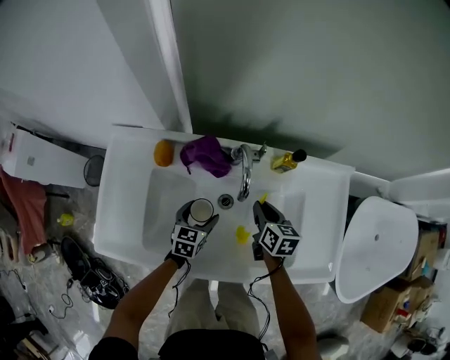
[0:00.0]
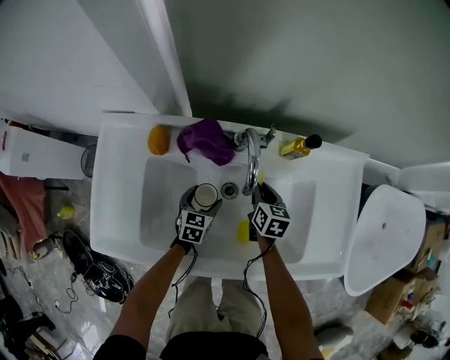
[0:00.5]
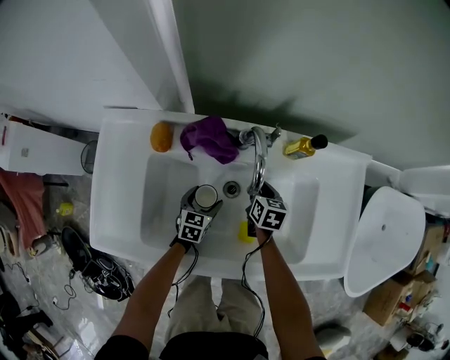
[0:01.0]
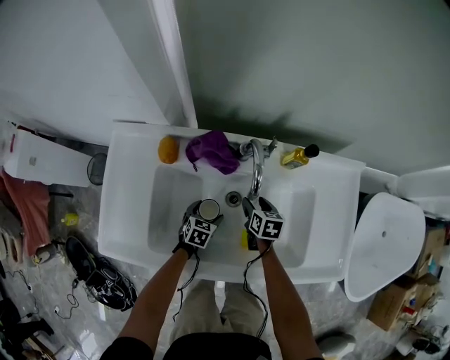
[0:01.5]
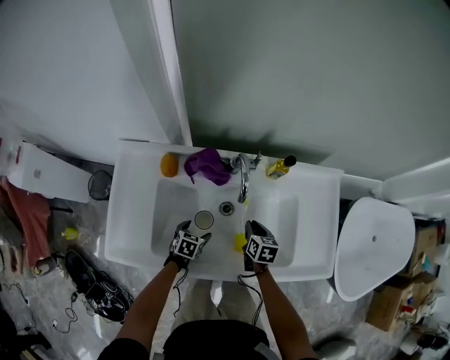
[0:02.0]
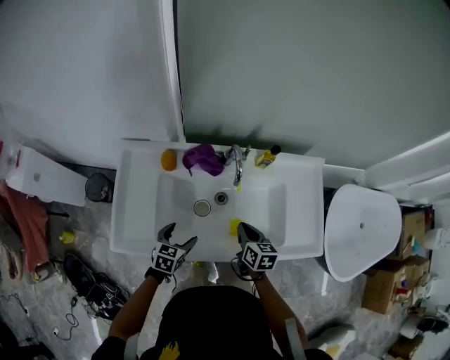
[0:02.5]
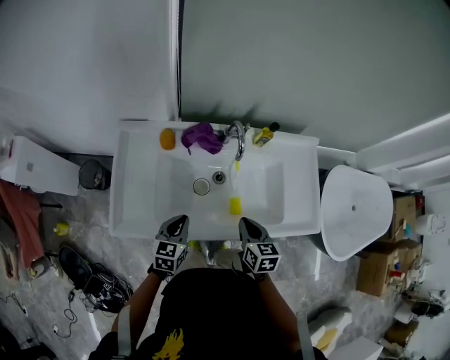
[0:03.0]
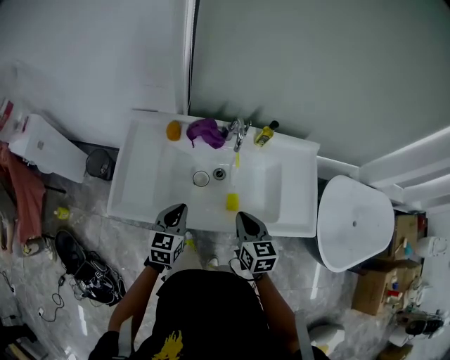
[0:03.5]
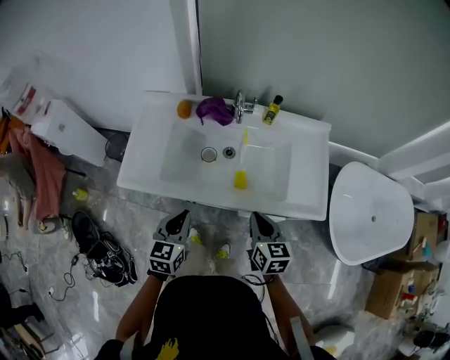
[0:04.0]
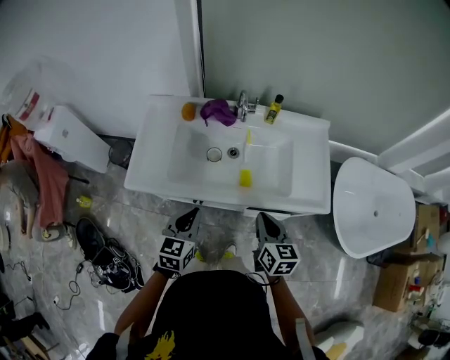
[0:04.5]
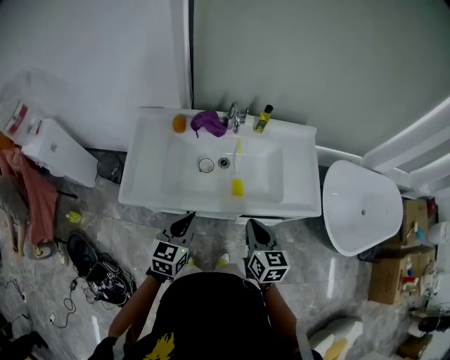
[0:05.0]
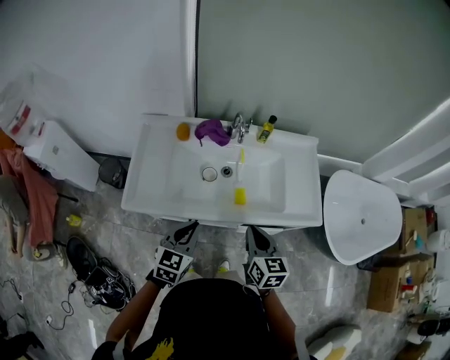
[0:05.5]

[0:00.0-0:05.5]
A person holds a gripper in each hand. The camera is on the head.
0:00.0 to 0:02.0: The right gripper shifts some 5 cm backward, and opens, then closes again; the left gripper shifts some 10 cm downward and backward, and turns by roughly 20 degrees.
0:02.0 to 0:03.5: Both grippers move upward and backward, about 30 cm. The left gripper points its fingers about 30 degrees further upward, and closes up. Meanwhile the right gripper rotates approximately 20 degrees.
0:03.5 to 0:05.5: The right gripper goes some 10 cm backward. The left gripper heads backward and upward, covering roughly 15 cm.

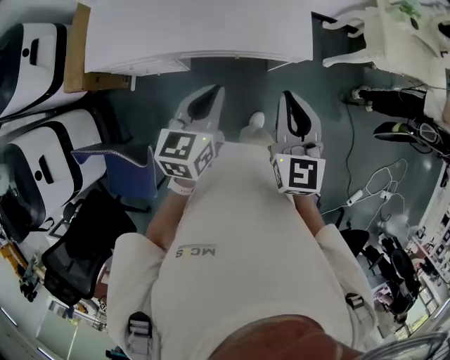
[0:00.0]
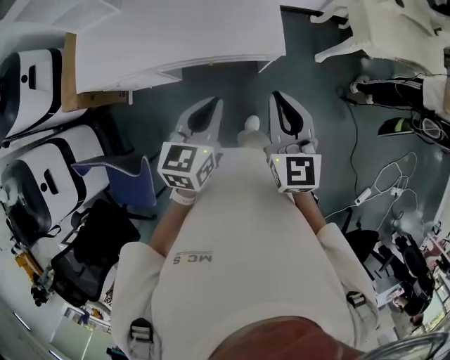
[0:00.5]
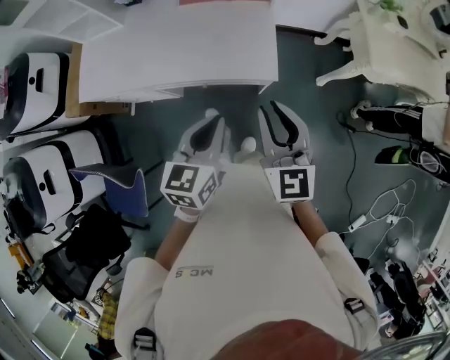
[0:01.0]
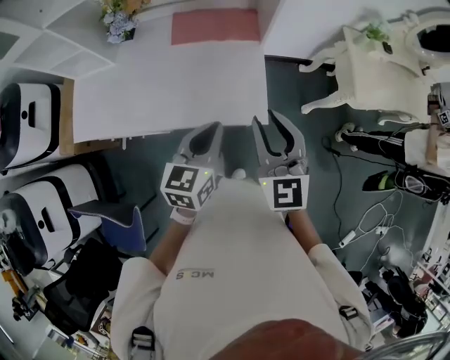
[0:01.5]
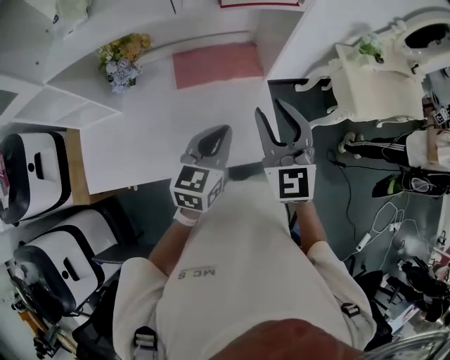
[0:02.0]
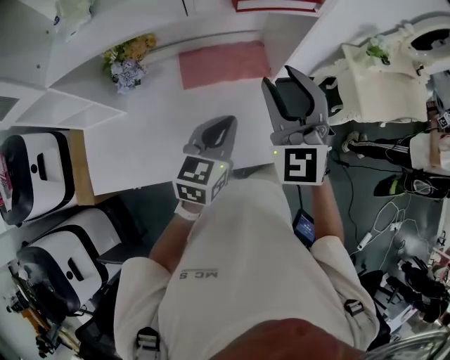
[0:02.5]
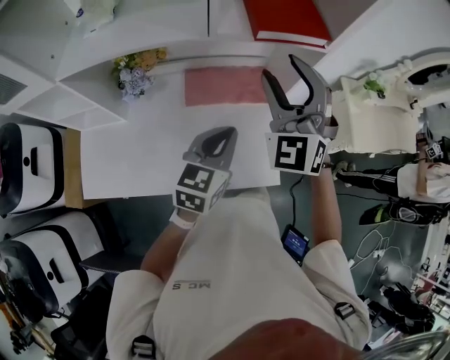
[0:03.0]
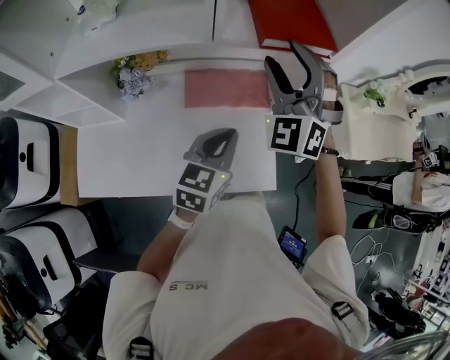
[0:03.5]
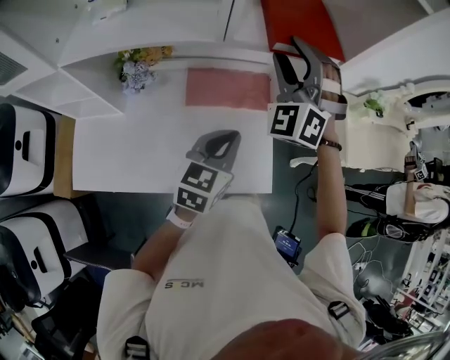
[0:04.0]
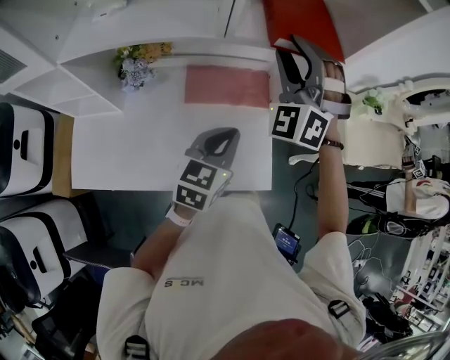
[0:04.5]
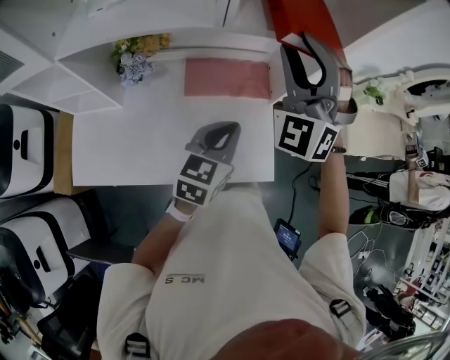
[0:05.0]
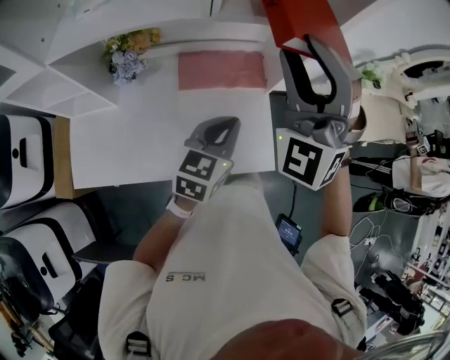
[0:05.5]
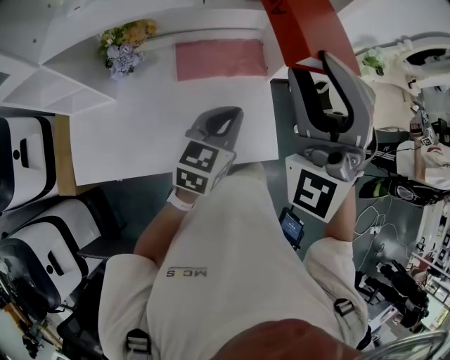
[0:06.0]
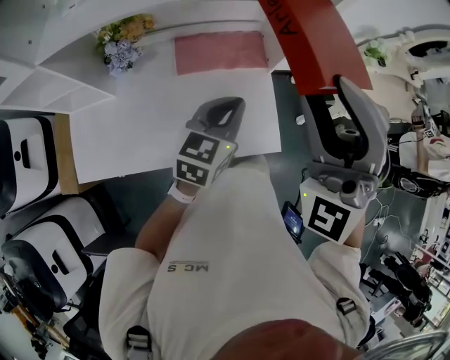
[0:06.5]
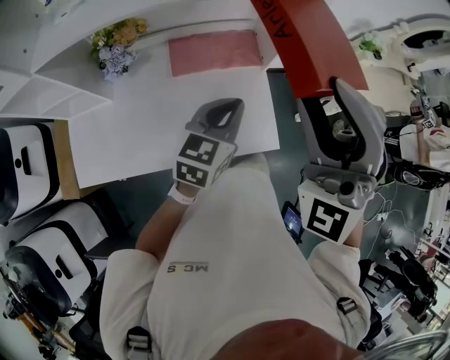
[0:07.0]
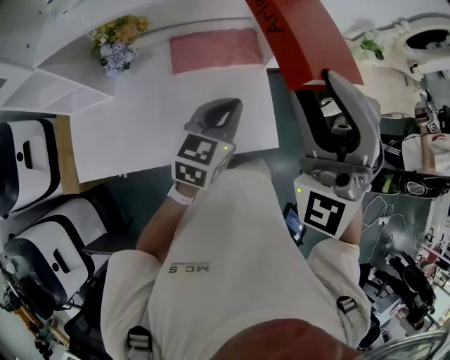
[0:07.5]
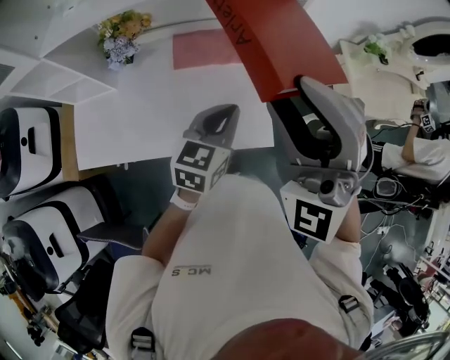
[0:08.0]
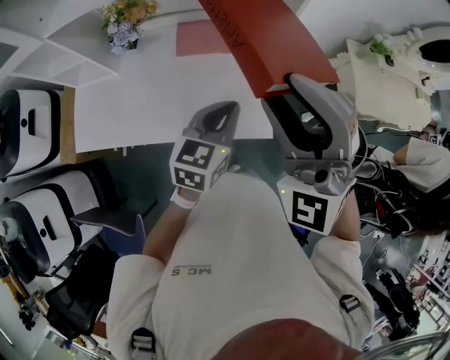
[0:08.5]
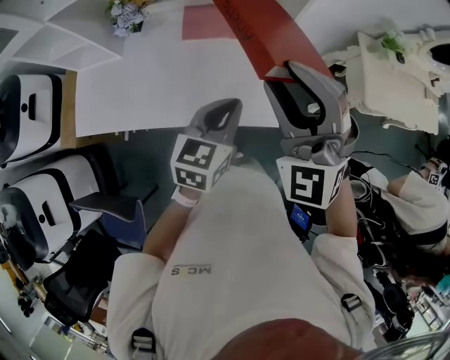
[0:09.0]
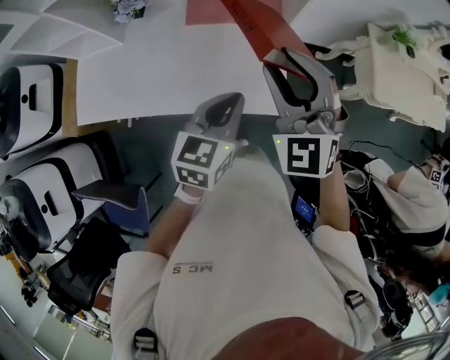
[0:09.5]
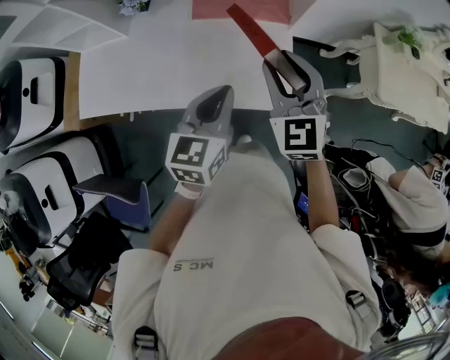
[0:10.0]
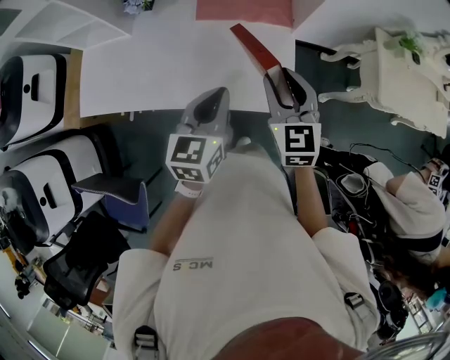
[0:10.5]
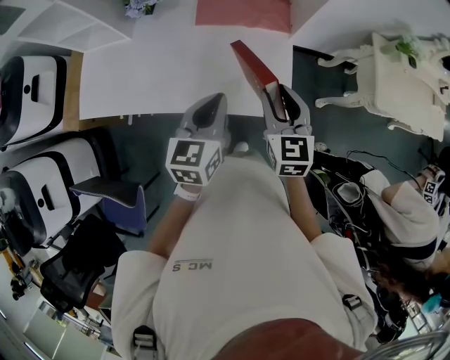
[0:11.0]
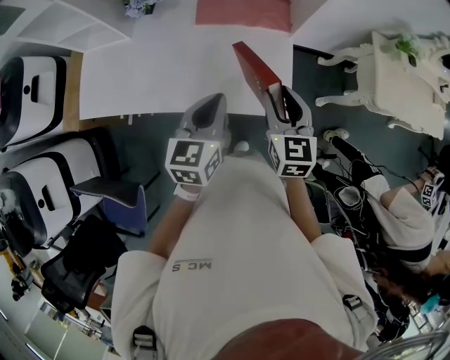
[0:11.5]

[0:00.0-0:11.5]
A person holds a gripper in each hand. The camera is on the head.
0:00.0 to 0:02.0: The grippers both shift forward by some 35 cm. The right gripper opens.
0:02.0 to 0:04.0: The left gripper heads forward, covering roughly 10 cm. The right gripper heads forward, to the left and upward, covering some 25 cm, and twists approximately 50 degrees counterclockwise, seen from behind.
0:04.0 to 0:06.0: The right gripper heads backward and upward, covering about 20 cm.
0:06.0 to 0:07.5: The right gripper moves backward, roughly 5 cm.
0:07.5 to 0:09.5: The right gripper shifts roughly 15 cm downward, and rotates about 30 degrees. The left gripper goes approximately 10 cm backward.
0:09.5 to 0:11.5: The right gripper is displaced downward by approximately 15 cm, and rolls clockwise, seen from behind, by about 40 degrees; the left gripper is displaced to the left by approximately 5 cm.

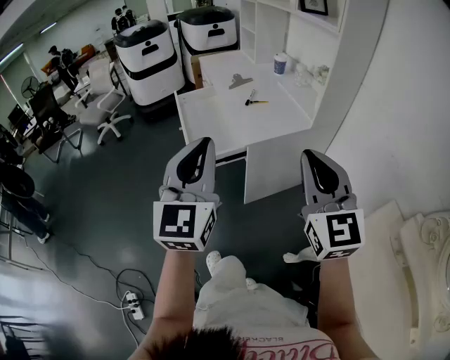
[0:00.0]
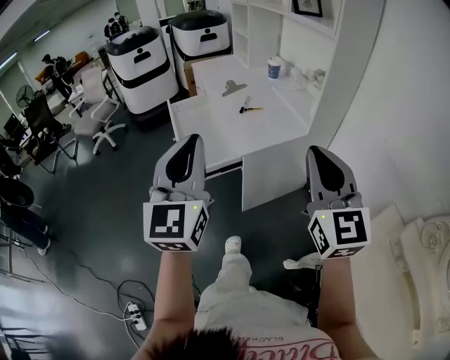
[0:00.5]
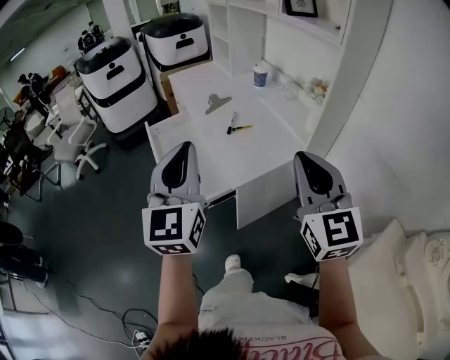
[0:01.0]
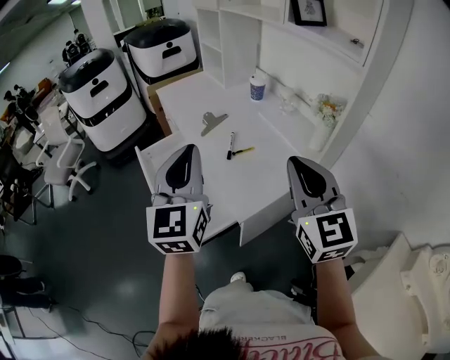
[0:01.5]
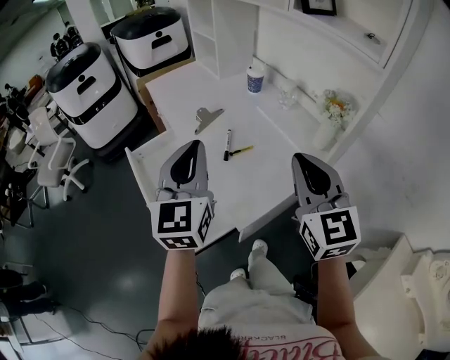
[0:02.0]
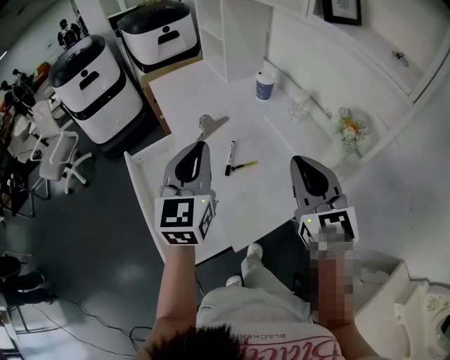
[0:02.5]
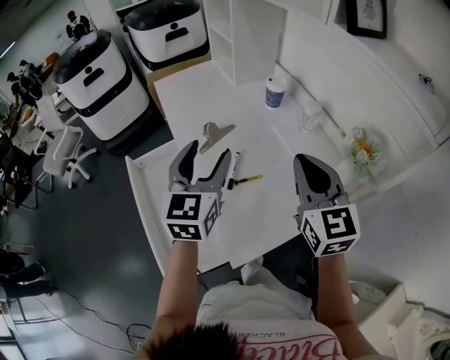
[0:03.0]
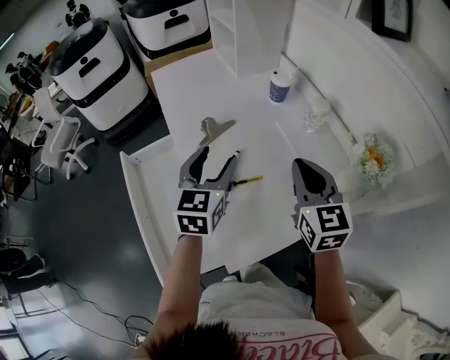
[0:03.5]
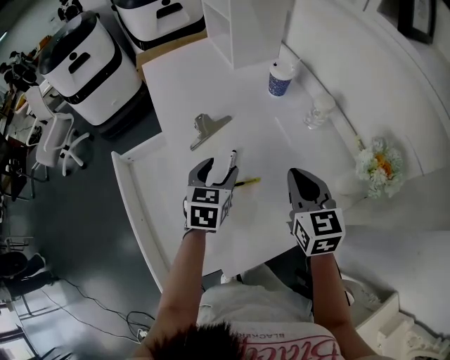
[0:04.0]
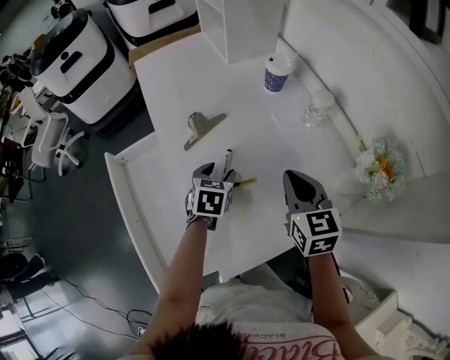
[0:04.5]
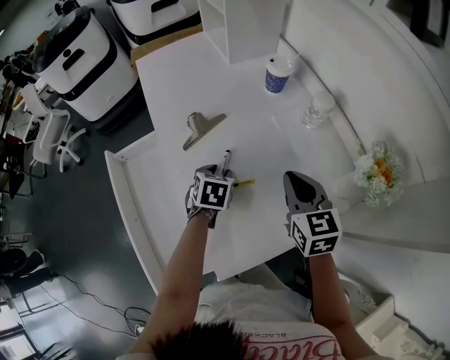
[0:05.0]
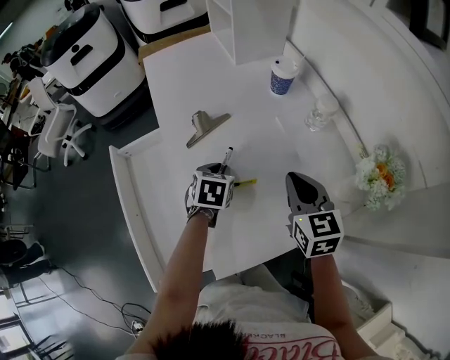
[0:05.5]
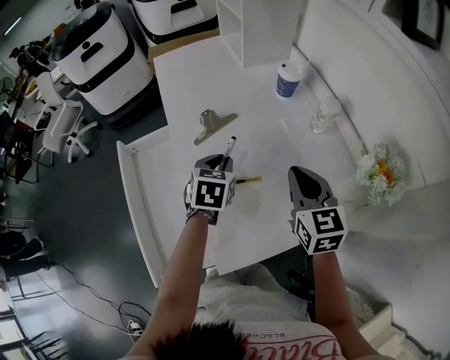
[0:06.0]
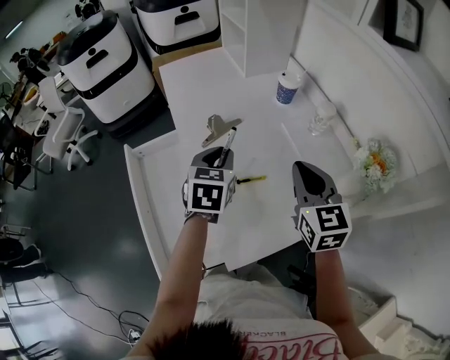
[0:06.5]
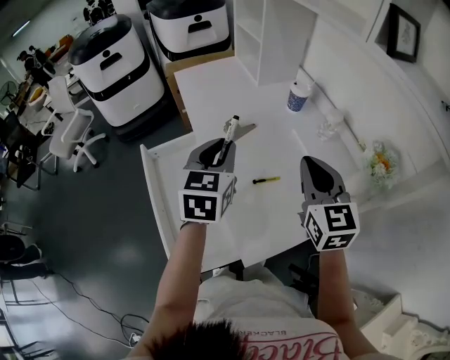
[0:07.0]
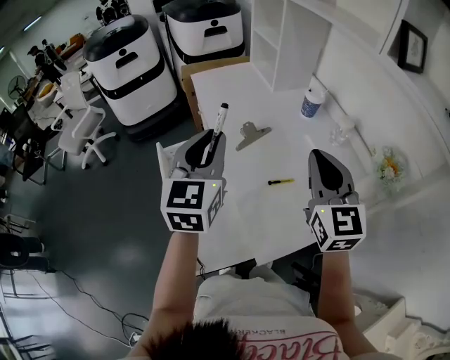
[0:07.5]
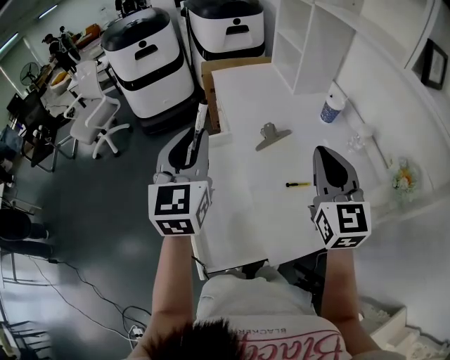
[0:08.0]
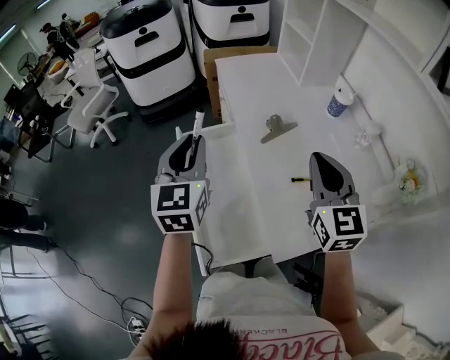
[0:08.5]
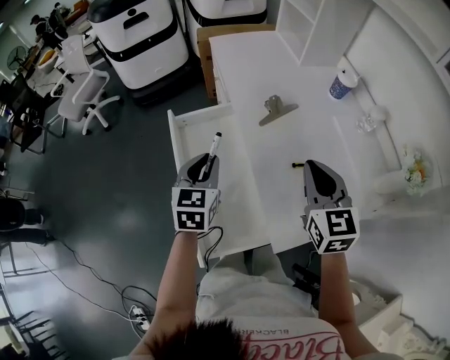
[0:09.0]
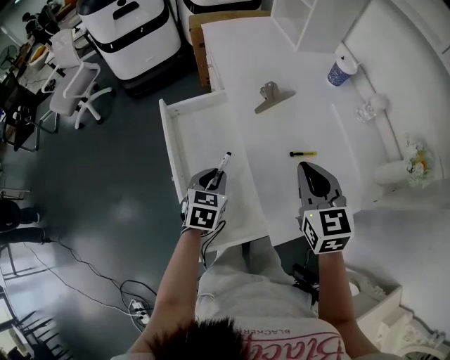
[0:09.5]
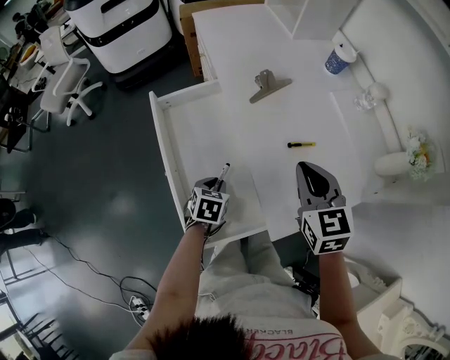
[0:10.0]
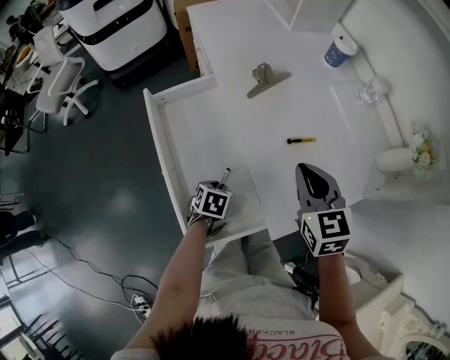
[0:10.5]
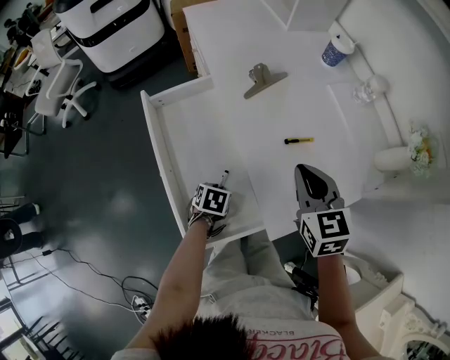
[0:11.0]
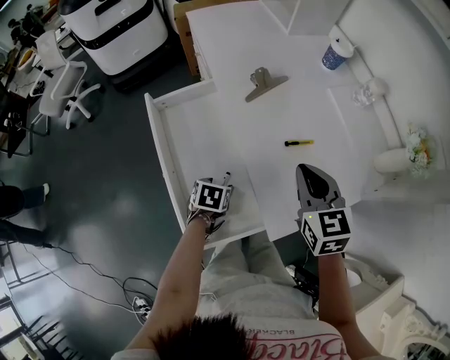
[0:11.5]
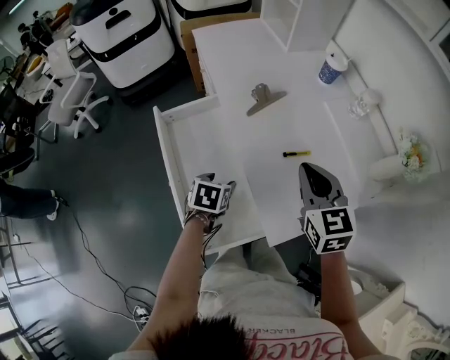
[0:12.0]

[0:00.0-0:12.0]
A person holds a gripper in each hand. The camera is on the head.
0:00.0 to 0:02.0: Both grippers travel together forward, some 40 cm.
0:02.0 to 0:04.0: The right gripper is displaced forward and downward by about 30 cm, and turns by approximately 20 degrees. Meanwhile the left gripper goes roughly 35 cm downward and forward, points its fingers some 40 degrees further downward, and opens its fingers.
0:04.0 to 0:06.0: The left gripper moves some 10 cm downward and comes back, and closes up.
0:06.0 to 0:08.0: The left gripper moves upward and to the left, roughly 35 cm, and tips its fingers upward by roughly 40 degrees; the right gripper is displaced upward and to the left by about 25 cm, and turns by roughly 20 degrees.
0:08.0 to 0:10.0: The left gripper goes roughly 40 cm downward, and points its fingers some 50 degrees further downward; the right gripper heads downward, covering about 20 cm, and rotates some 30 degrees.
0:10.0 to 0:12.0: The left gripper heads upward, covering some 5 cm, and opens.
